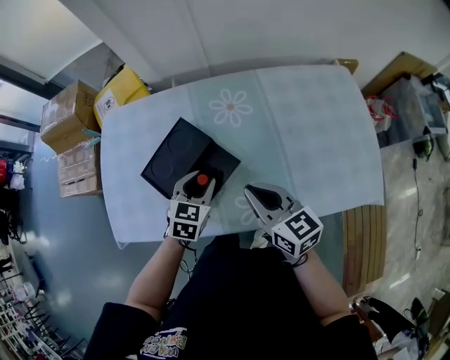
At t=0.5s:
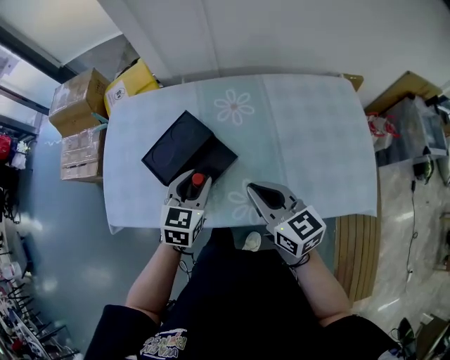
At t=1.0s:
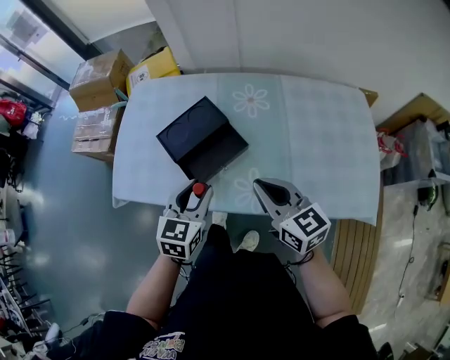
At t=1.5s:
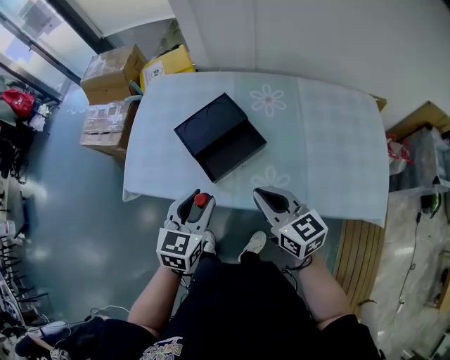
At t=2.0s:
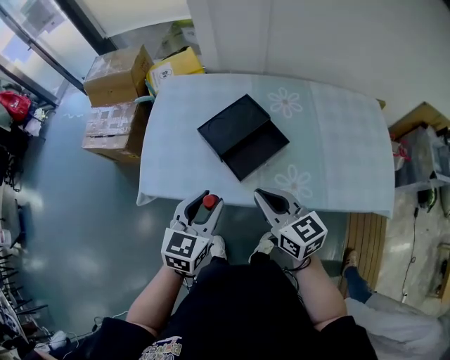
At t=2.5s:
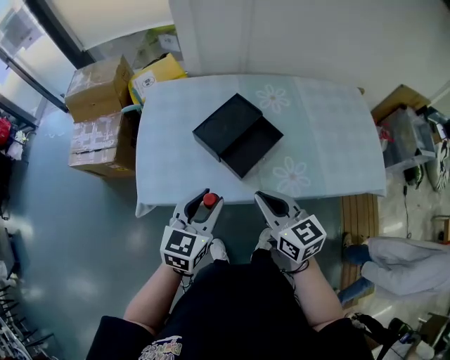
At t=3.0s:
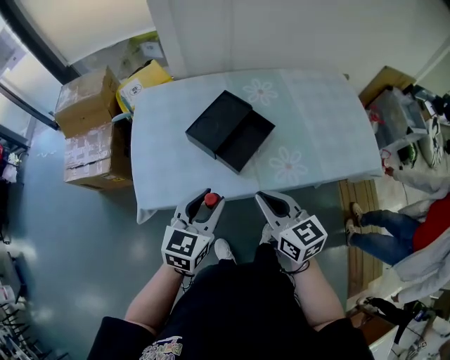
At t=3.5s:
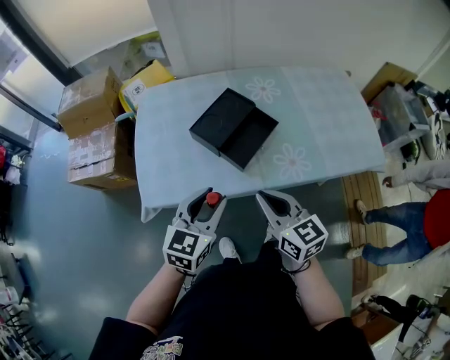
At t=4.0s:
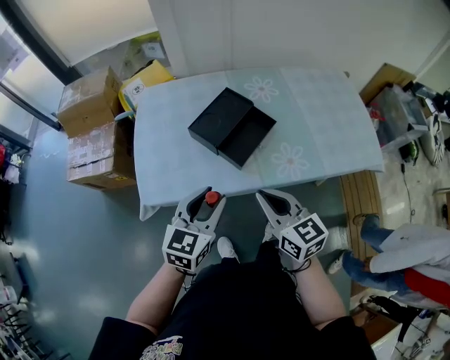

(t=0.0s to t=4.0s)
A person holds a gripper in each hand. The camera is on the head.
t=0.0s - t=2.0s: The right gripper travels to the left and backward by approximately 20 cm. Meanwhile the left gripper is displaced backward, to the left and upward by about 25 cm, and swivels some 20 degrees.
t=2.0s - t=4.0s: The right gripper is displaced backward by roughly 5 cm.

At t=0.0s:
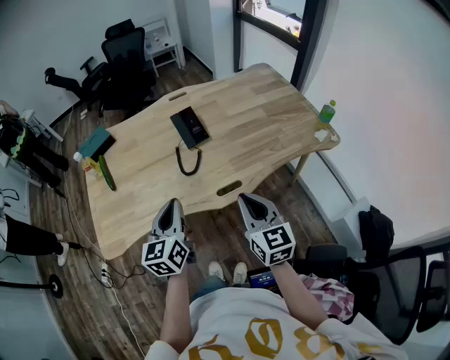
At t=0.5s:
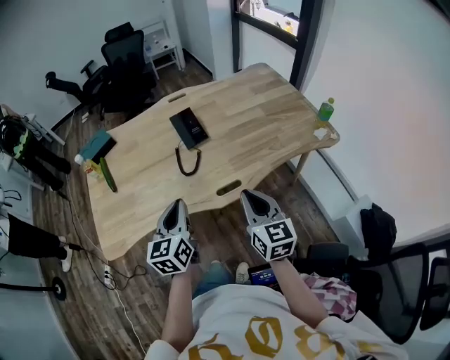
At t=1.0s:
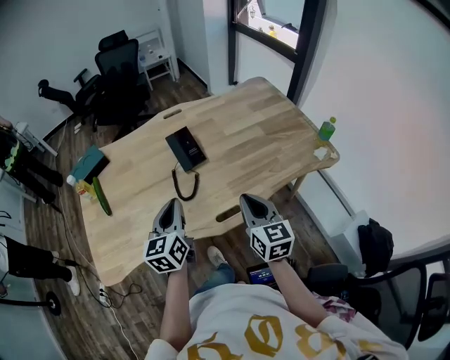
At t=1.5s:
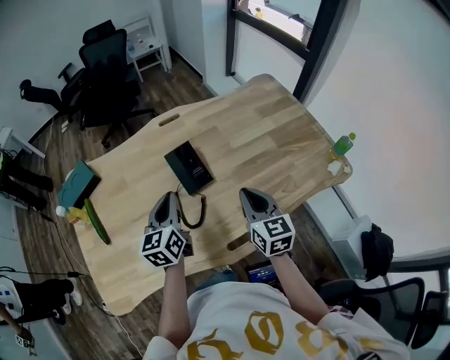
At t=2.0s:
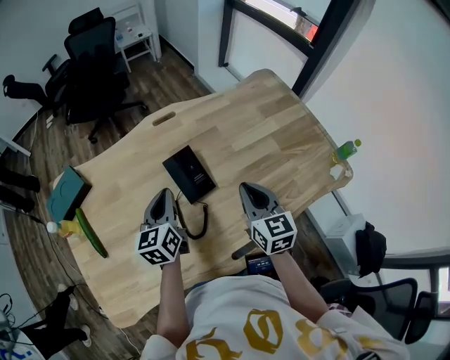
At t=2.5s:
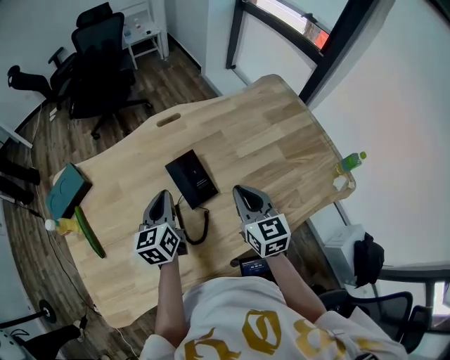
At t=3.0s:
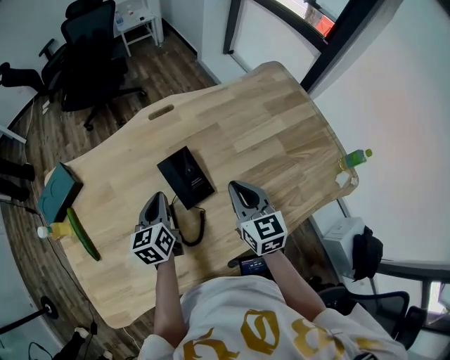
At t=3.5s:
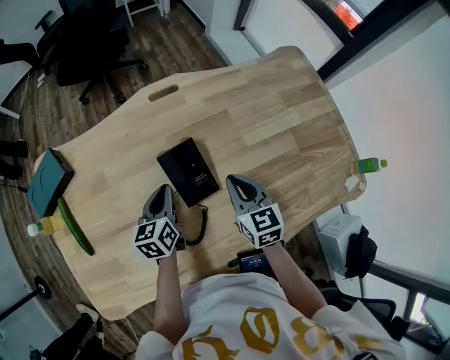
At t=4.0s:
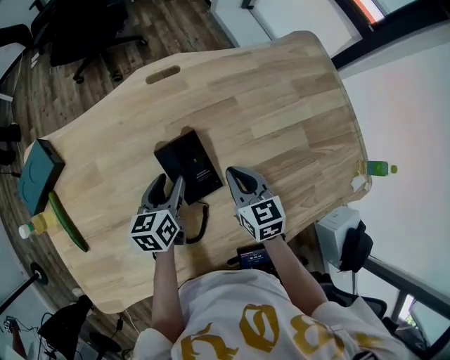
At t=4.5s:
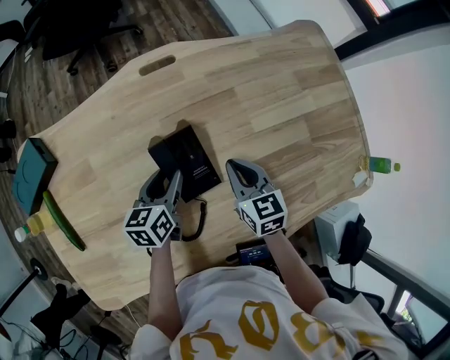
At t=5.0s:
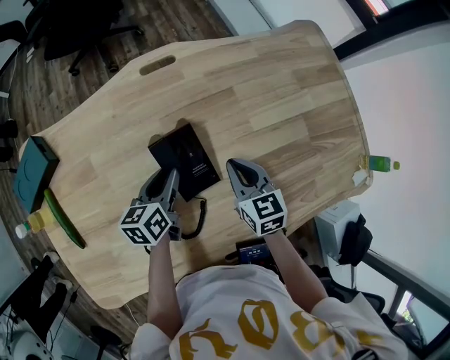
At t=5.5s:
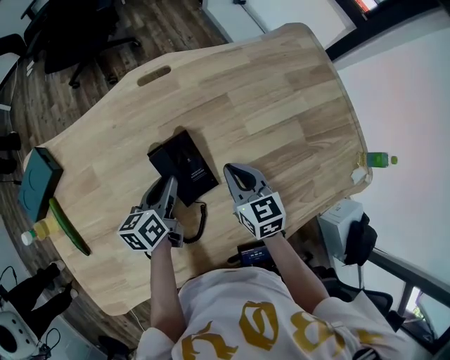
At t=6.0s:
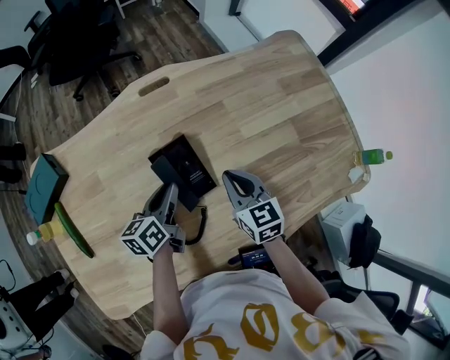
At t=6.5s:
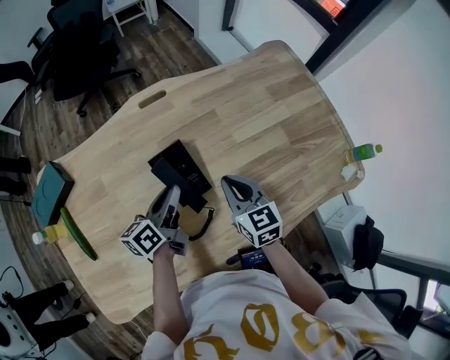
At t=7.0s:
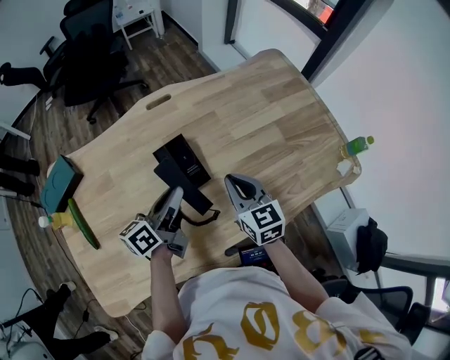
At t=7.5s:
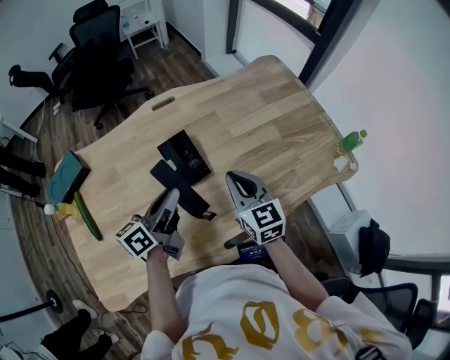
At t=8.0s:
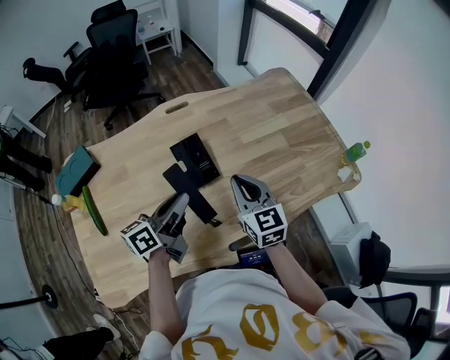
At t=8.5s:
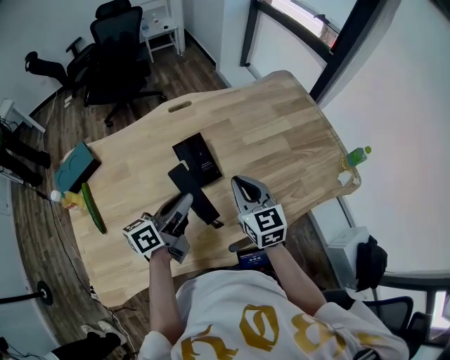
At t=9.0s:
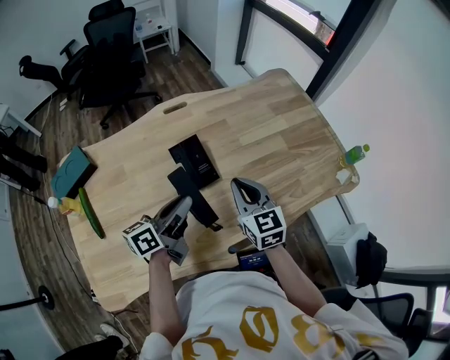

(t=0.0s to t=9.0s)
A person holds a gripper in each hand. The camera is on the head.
t=0.0s - t=2.0s: Both grippers move forward, about 30 cm.
t=2.0s - t=4.5s: Both grippers move downward and forward, approximately 20 cm. The left gripper turns by roughly 20 degrees, and opens up. The right gripper rotates about 20 degrees.
t=4.5s - t=7.0s: The grippers both shift upward and backward by approximately 15 cm. The left gripper changes its angle by about 30 degrees, and closes its fingers.
t=7.0s - t=9.0s: The right gripper changes place by roughly 5 cm. Meanwhile the left gripper goes some 5 cm backward.

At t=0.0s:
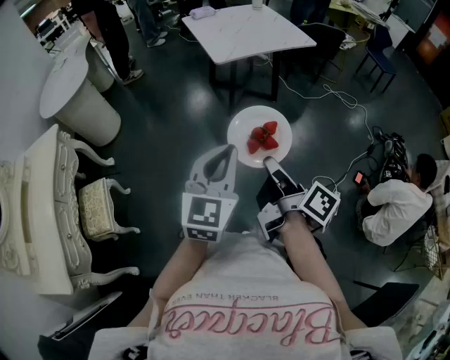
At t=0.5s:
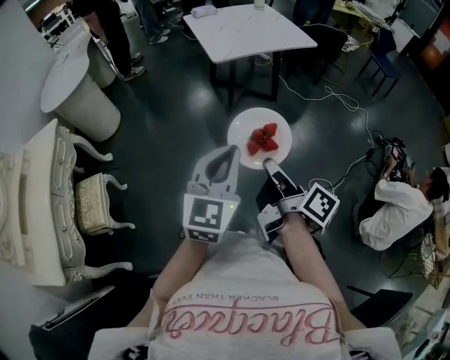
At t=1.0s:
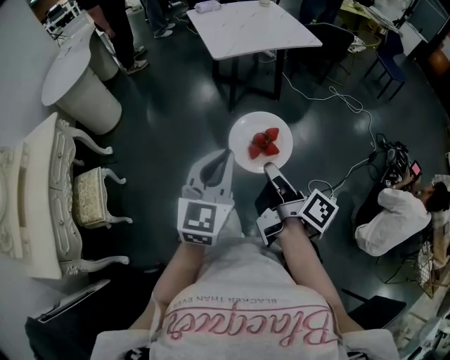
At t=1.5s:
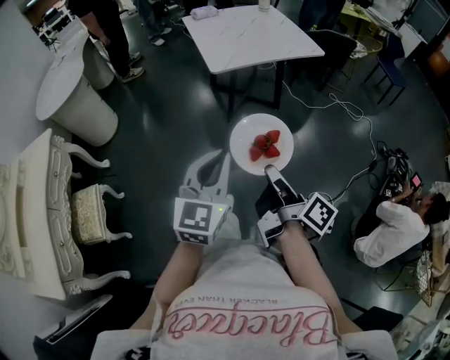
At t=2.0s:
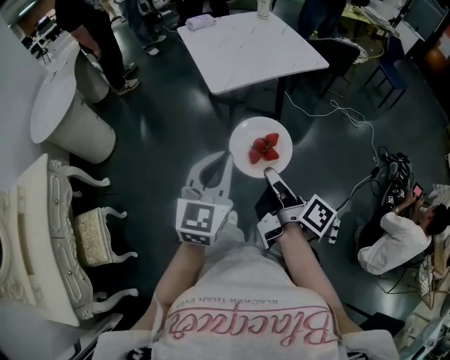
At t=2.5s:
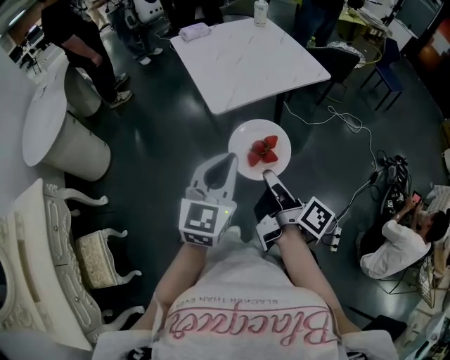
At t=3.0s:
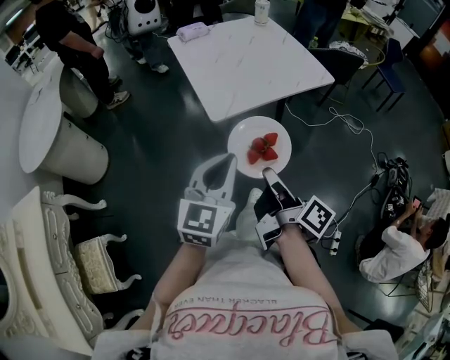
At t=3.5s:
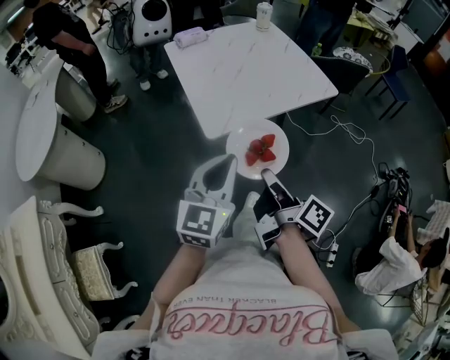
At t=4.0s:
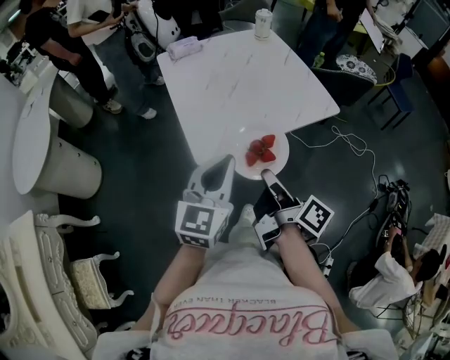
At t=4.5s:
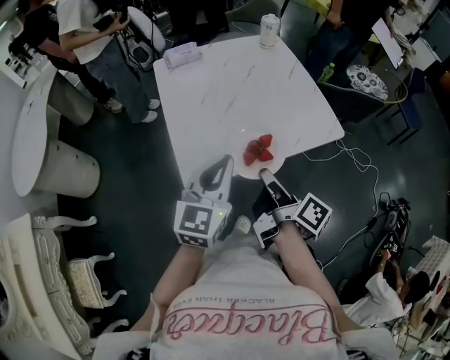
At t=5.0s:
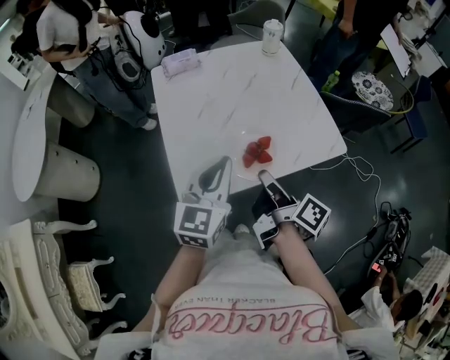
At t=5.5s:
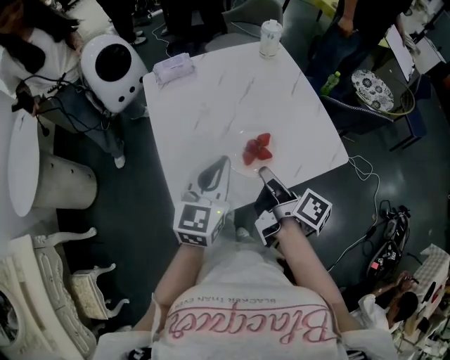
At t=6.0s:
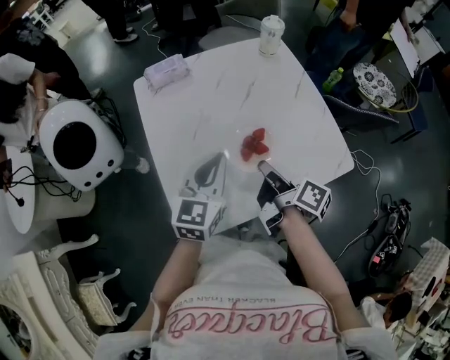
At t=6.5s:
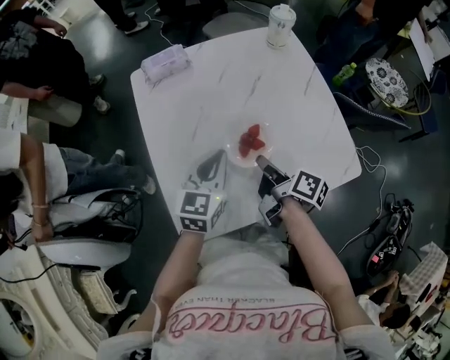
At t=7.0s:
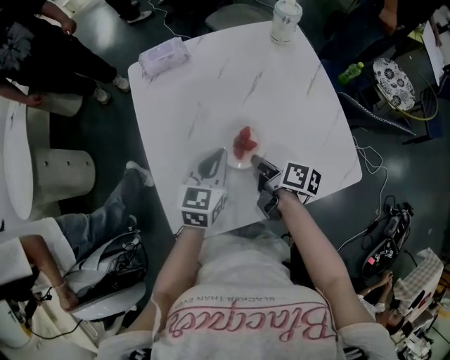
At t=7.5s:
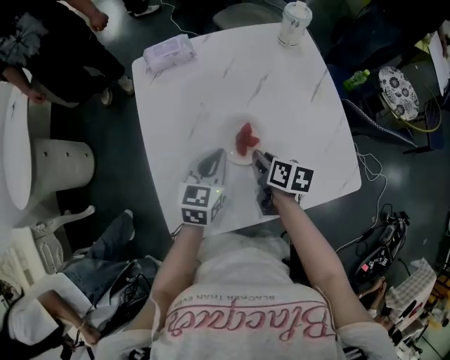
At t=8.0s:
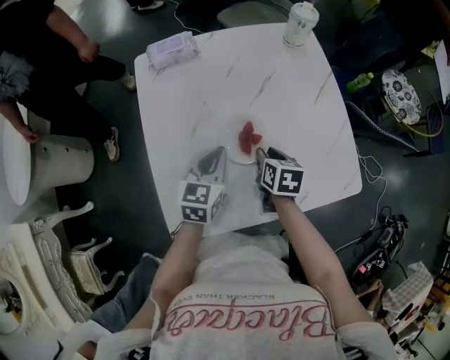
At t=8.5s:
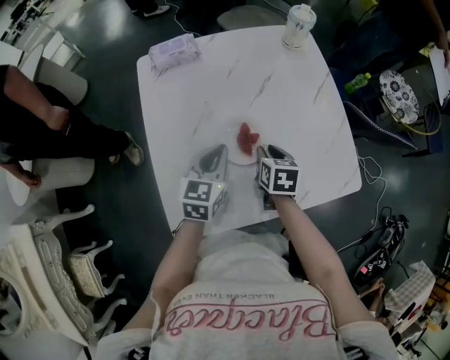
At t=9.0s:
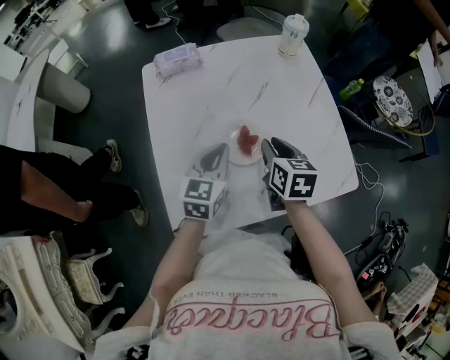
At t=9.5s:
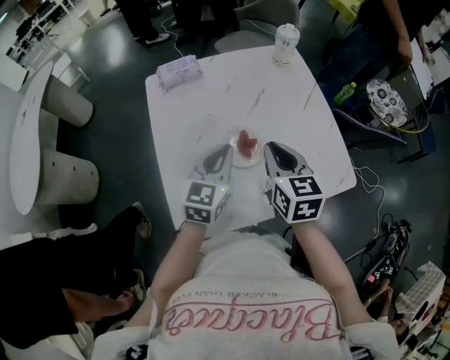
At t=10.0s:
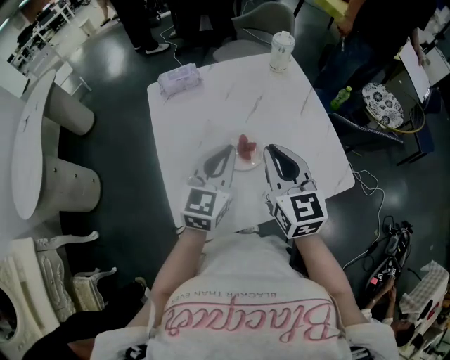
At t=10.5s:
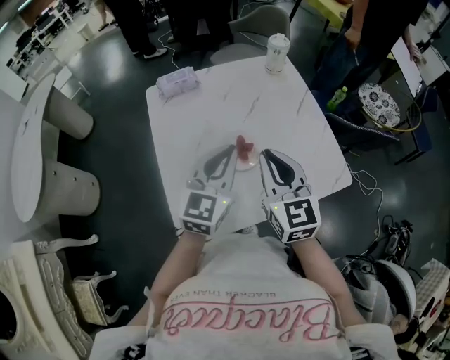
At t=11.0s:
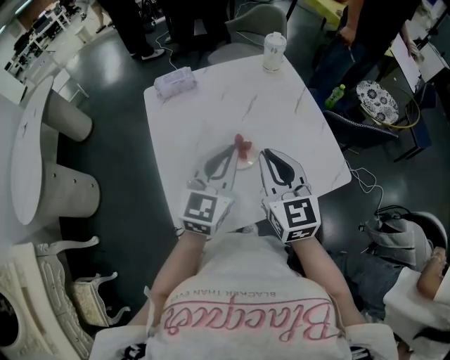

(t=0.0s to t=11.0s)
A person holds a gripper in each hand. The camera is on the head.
t=0.0s - t=2.0s: Both grippers travel together forward, roughly 25 cm.
t=2.0s - t=3.5s: The grippers both shift forward by approximately 25 cm.
t=3.5s - t=5.5s: Both grippers travel together forward, some 40 cm.
t=5.5s - t=7.5s: The right gripper moves forward and downward, roughly 25 cm, and turns by roughly 50 degrees. The left gripper is displaced downward and forward by some 20 cm.
t=7.5s - t=9.0s: The right gripper is displaced upward by roughly 10 cm, and rotates roughly 30 degrees.
t=9.0s - t=11.0s: The right gripper shifts some 15 cm upward and backward, and changes its angle by approximately 30 degrees. Meanwhile the left gripper moves upward, approximately 15 cm, and rotates roughly 20 degrees.

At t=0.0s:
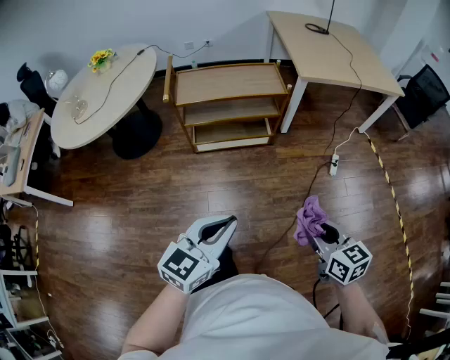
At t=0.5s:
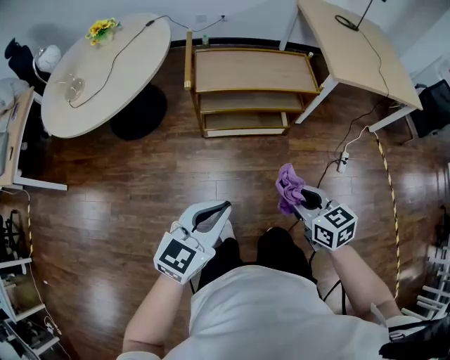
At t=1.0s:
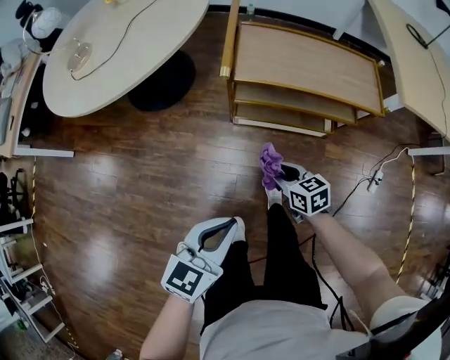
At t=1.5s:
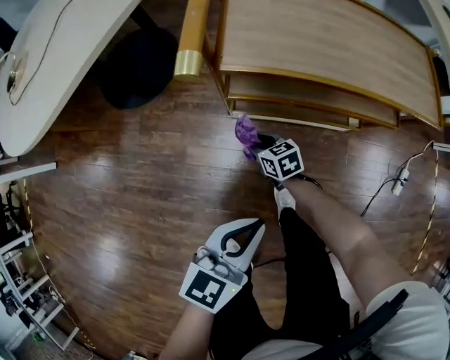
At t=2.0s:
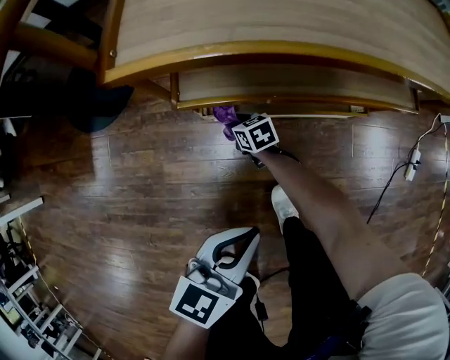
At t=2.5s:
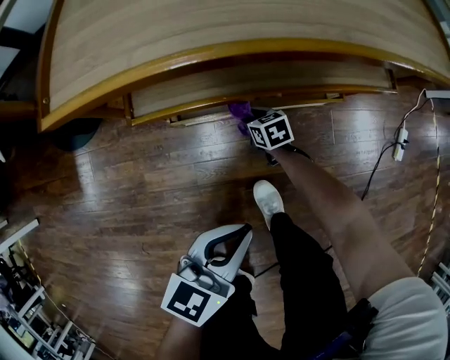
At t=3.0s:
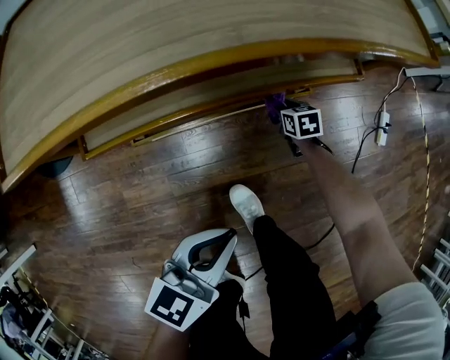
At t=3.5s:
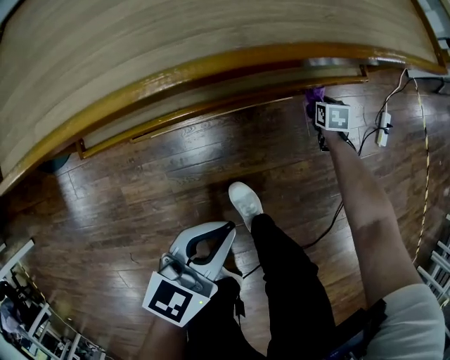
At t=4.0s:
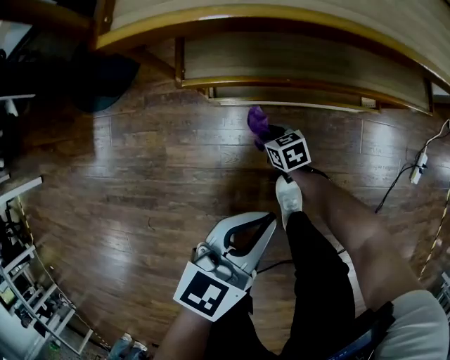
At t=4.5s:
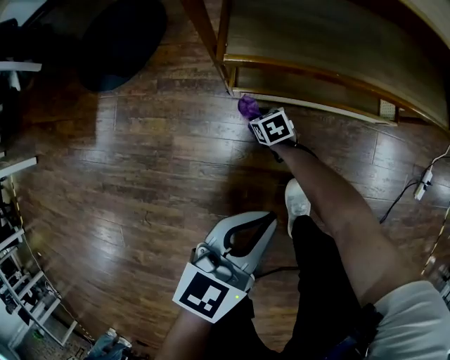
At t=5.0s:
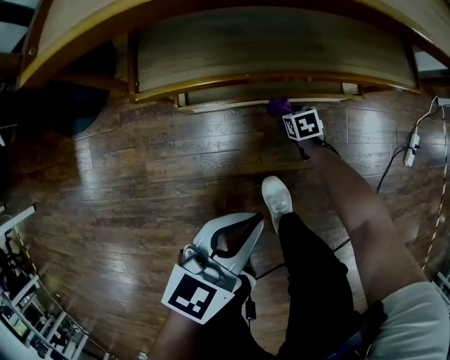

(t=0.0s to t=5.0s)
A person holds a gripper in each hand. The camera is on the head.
t=0.0s - t=2.5s: The left gripper is displaced downward and forward by about 60 cm; the right gripper travels downward and forward by roughly 1 m, and changes its angle by approximately 30 degrees.
